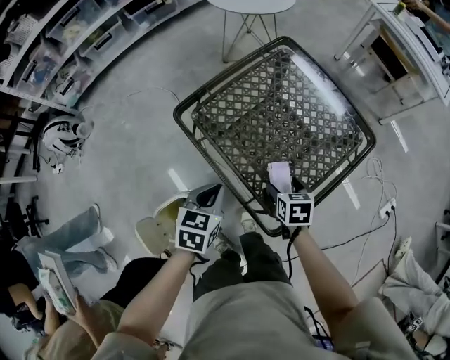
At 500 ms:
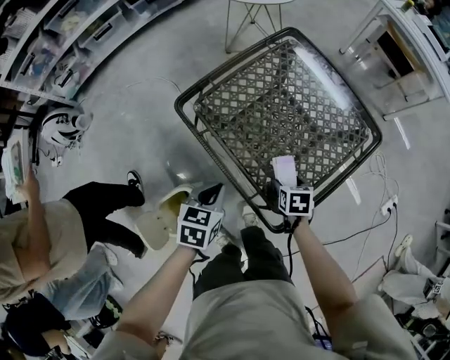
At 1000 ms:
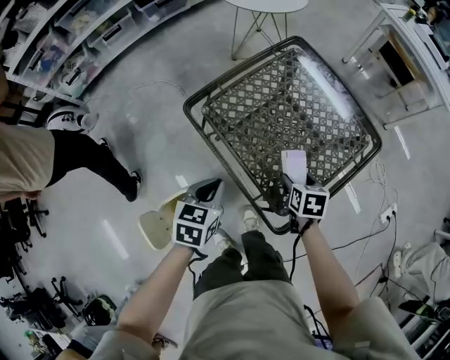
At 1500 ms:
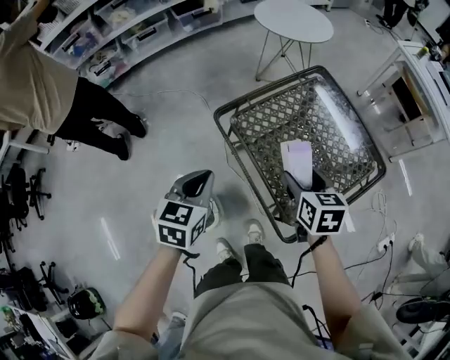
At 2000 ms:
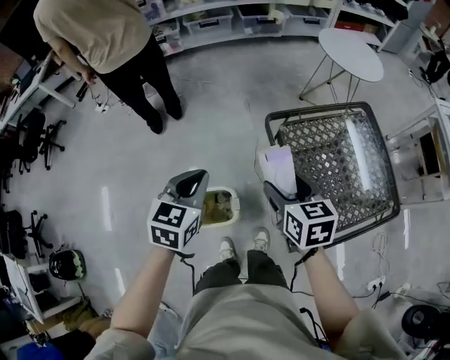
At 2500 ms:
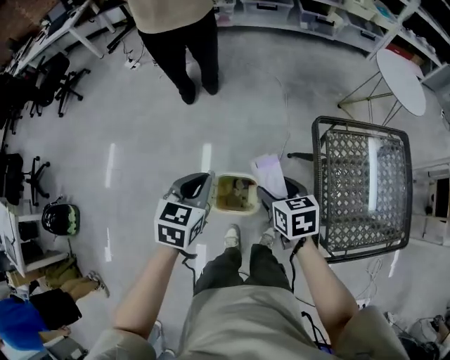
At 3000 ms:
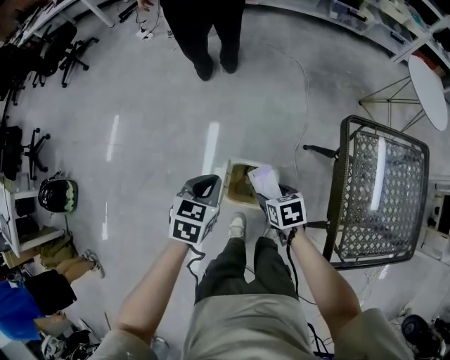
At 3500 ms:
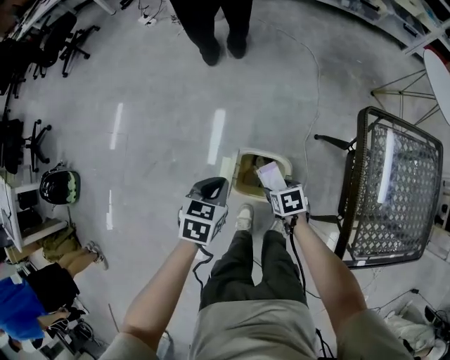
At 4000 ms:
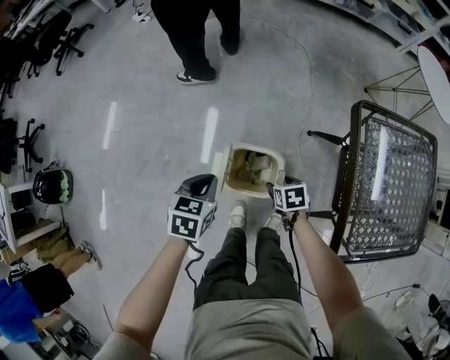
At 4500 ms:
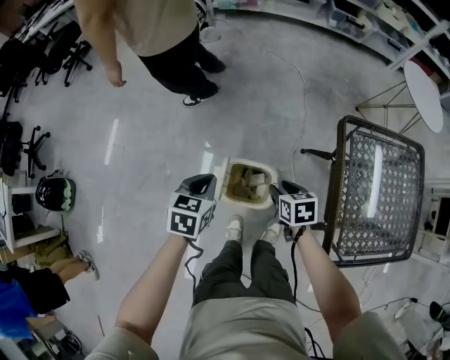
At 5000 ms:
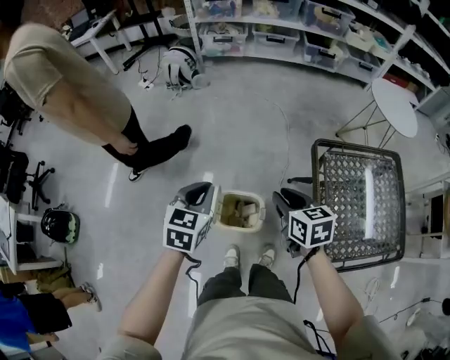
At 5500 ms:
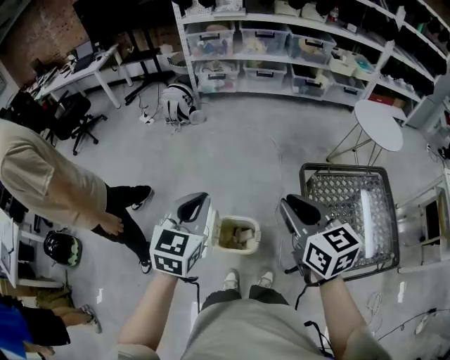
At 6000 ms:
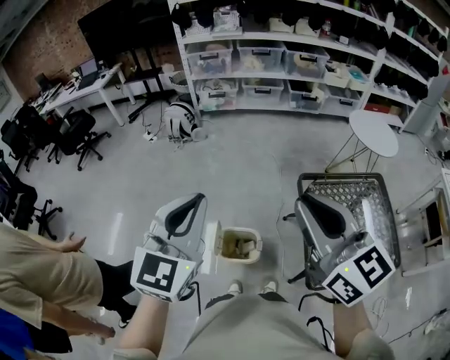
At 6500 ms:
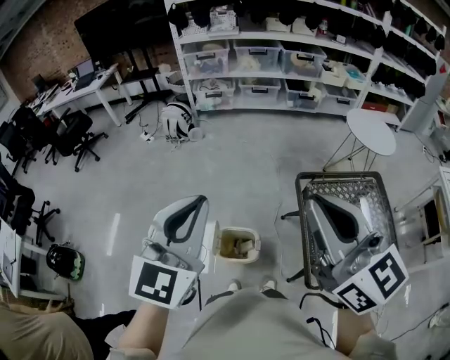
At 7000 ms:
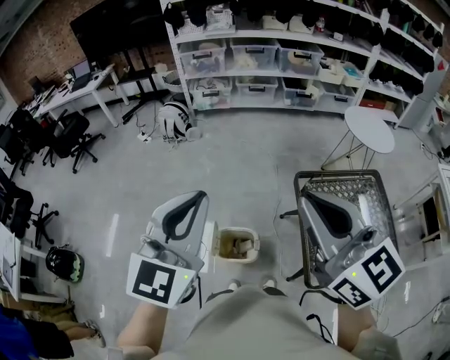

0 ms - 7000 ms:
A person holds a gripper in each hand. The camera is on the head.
0 ms - 2000 ms: The left gripper changes place by roughly 30 cm, and changes its angle by some 30 degrees, while the right gripper changes place by about 35 cm, and changes its angle by some 40 degrees.
2000 ms - 3500 ms: The left gripper is displaced downward by roughly 25 cm, and swivels roughly 30 degrees. The right gripper goes roughly 35 cm downward, and points its fingers approximately 30 degrees further downward.
3500 ms - 5000 ms: The left gripper heads upward, covering approximately 20 cm, and turns by some 20 degrees. Meanwhile the right gripper moves upward, roughly 35 cm, tips its fingers upward by roughly 30 degrees, and closes its fingers.
5000 ms - 7000 ms: The two grippers go about 35 cm upward. The right gripper points its fingers about 40 degrees further upward. The left gripper angles its fingers upward, by roughly 30 degrees.

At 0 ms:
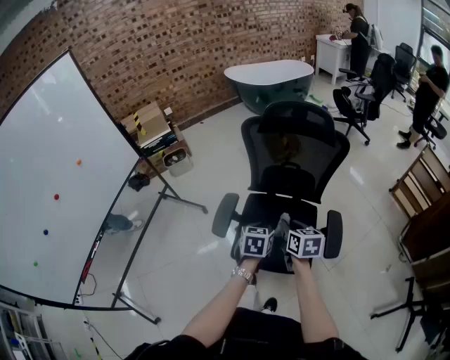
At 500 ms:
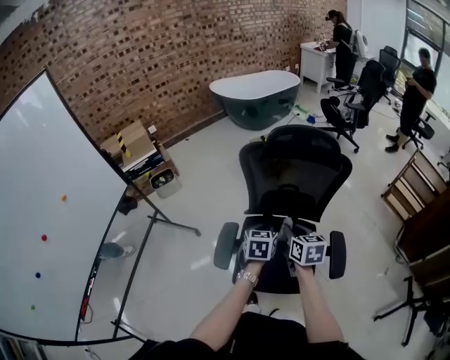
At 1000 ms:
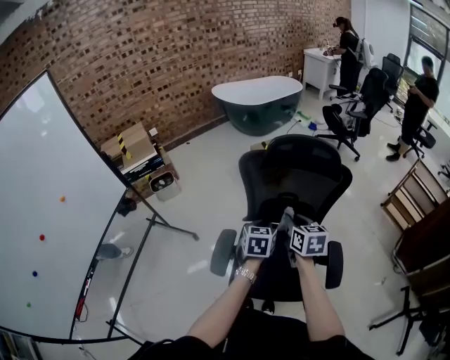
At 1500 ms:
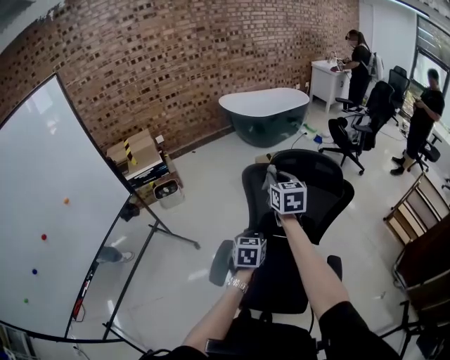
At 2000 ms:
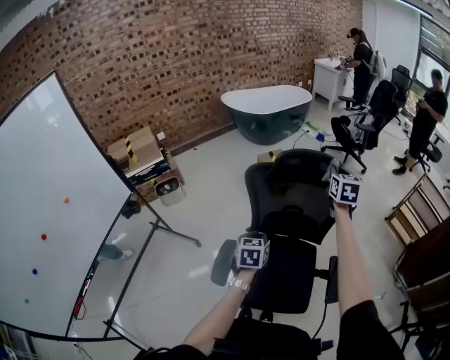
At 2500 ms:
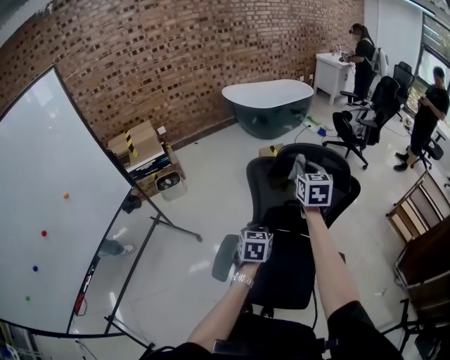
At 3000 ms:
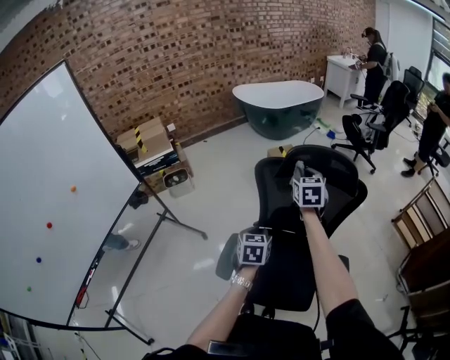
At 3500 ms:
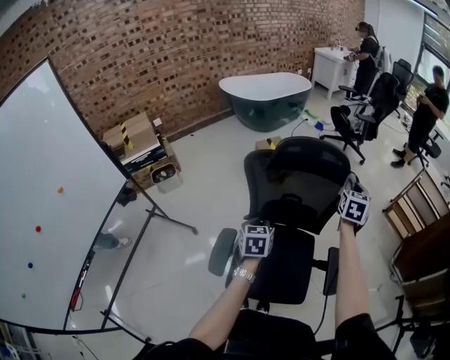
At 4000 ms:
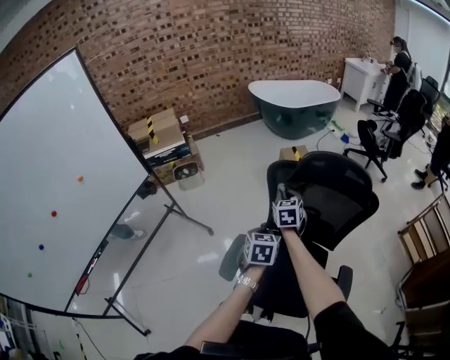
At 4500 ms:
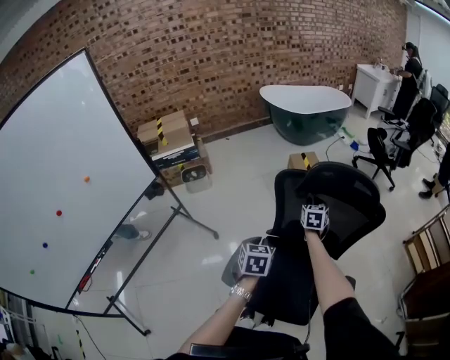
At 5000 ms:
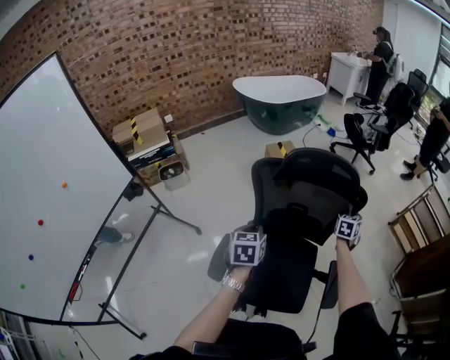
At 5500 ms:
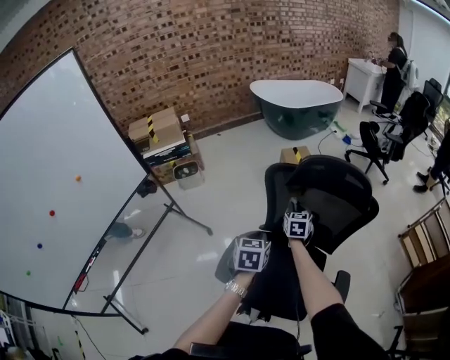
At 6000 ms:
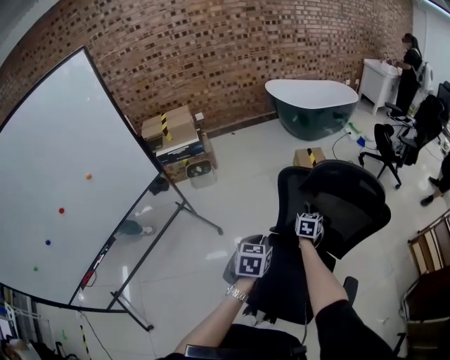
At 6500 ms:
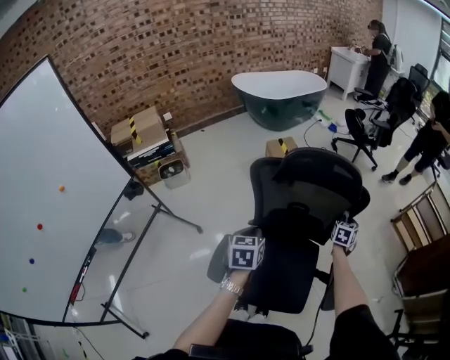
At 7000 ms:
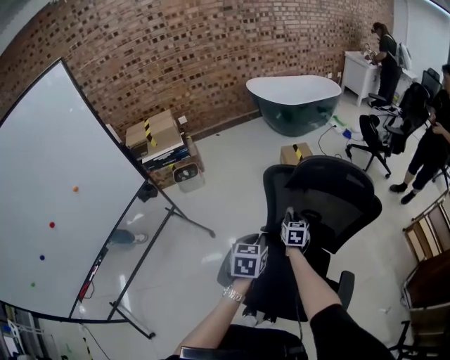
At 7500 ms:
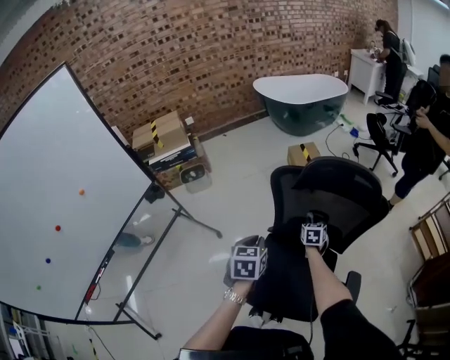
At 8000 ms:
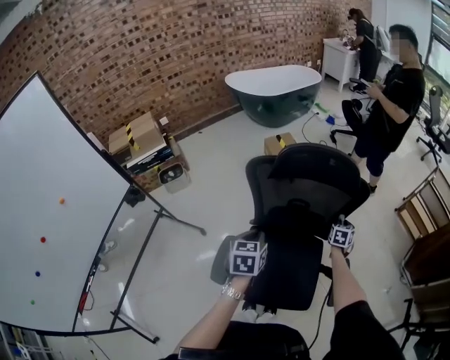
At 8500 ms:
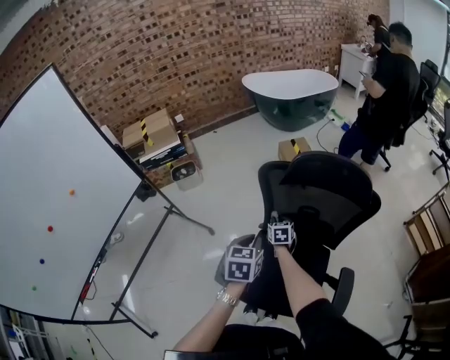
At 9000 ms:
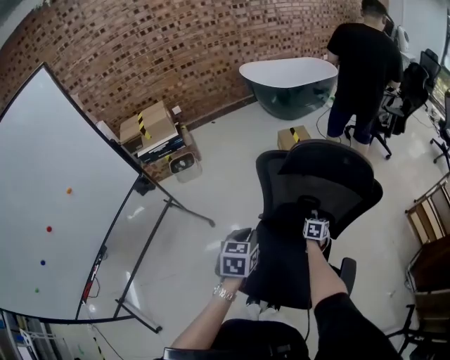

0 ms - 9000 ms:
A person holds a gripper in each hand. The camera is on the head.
0 ms - 2000 ms: The right gripper goes about 40 cm forward and upward, and changes its angle by some 40 degrees; the left gripper heads forward and to the left, covering approximately 15 cm.
2000 ms - 4500 ms: The right gripper goes left and right, about 35 cm each way, reversing 3 times; the left gripper travels to the left by approximately 5 cm.
4500 ms - 7000 ms: The right gripper swings left and right, roughly 35 cm each way, with 3 reversals, while the left gripper moves left and right over some 5 cm, changing direction 2 times.
7000 ms - 9000 ms: The right gripper goes left and right, about 35 cm each way, reversing 2 times, and rotates some 20 degrees.

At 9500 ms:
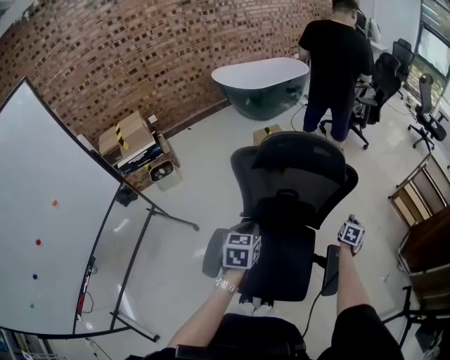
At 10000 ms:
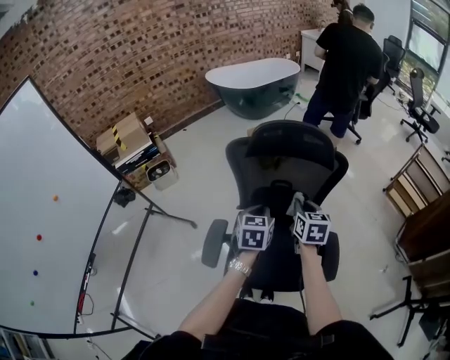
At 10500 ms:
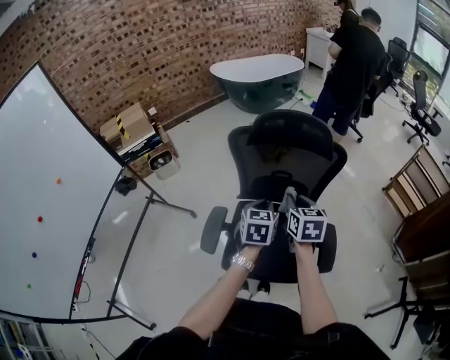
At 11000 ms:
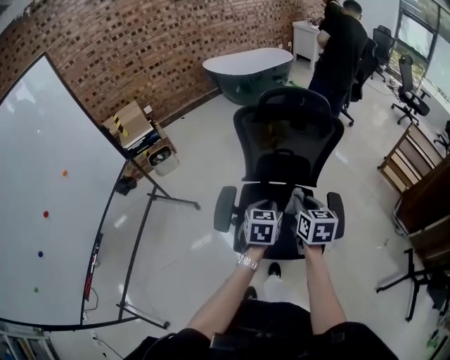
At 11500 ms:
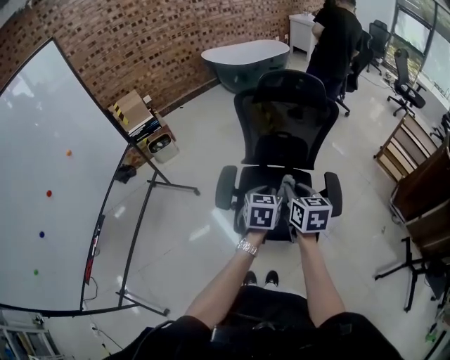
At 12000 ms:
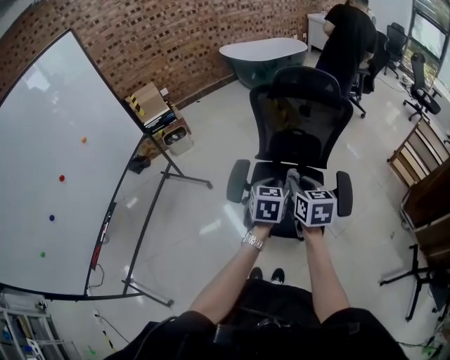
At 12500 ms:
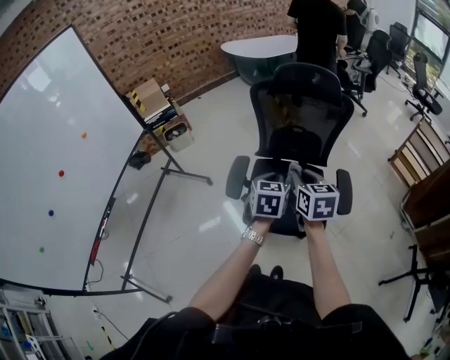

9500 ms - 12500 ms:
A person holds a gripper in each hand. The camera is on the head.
9500 ms - 11000 ms: The left gripper shifts roughly 15 cm backward. The right gripper travels to the left, backward and upward by some 40 cm, and turns by approximately 30 degrees.
11000 ms - 12500 ms: The right gripper moves to the left, some 5 cm, while the left gripper ends up about 5 cm from where it was.

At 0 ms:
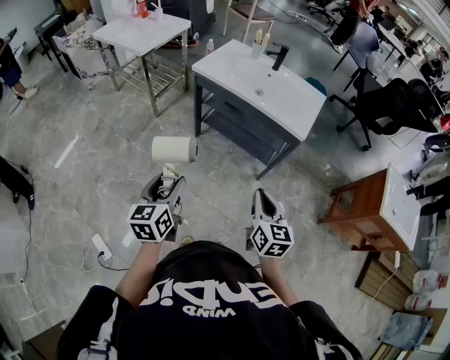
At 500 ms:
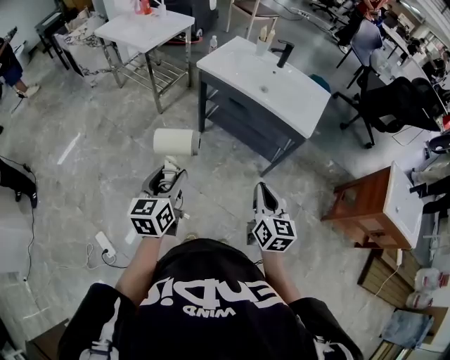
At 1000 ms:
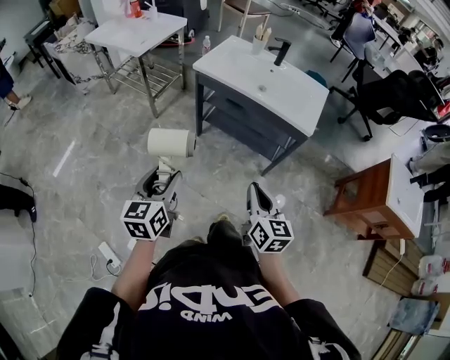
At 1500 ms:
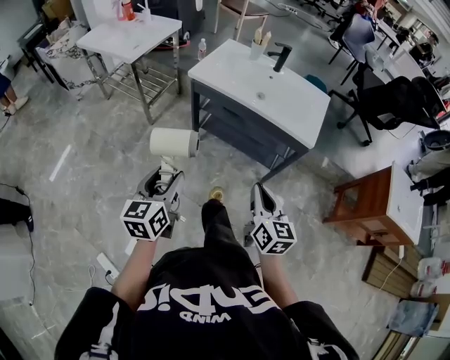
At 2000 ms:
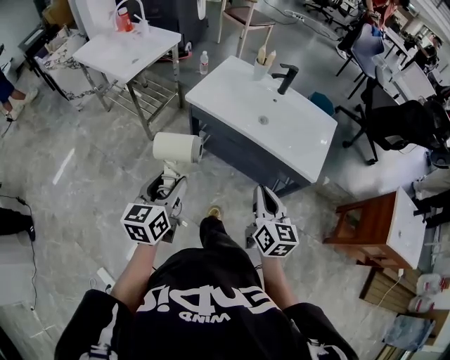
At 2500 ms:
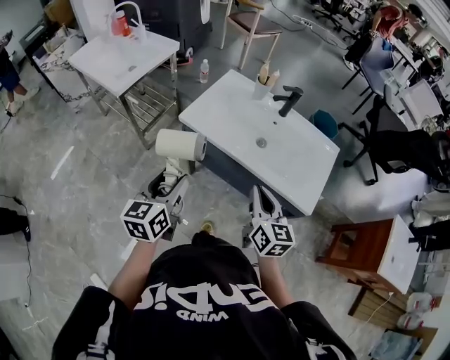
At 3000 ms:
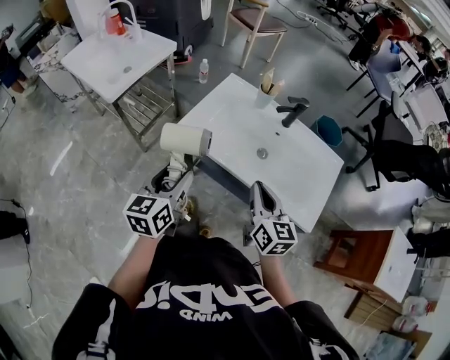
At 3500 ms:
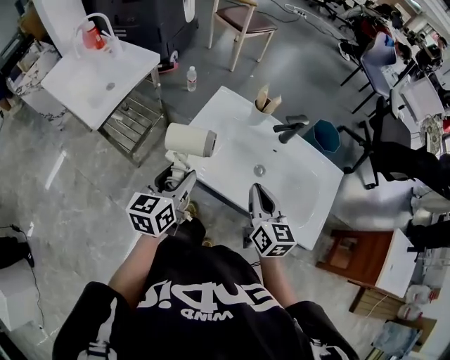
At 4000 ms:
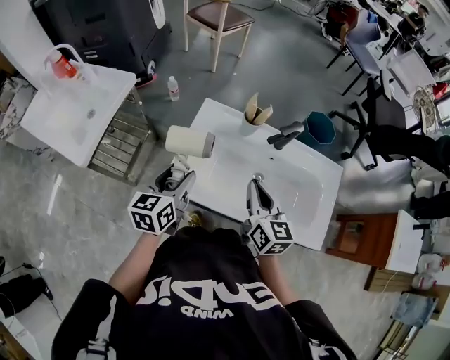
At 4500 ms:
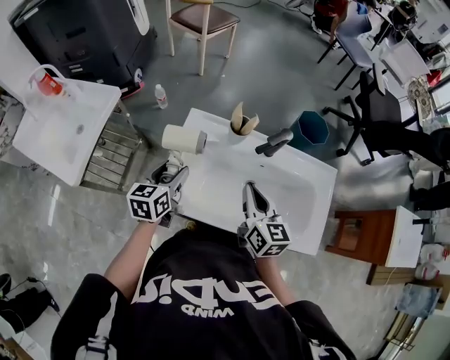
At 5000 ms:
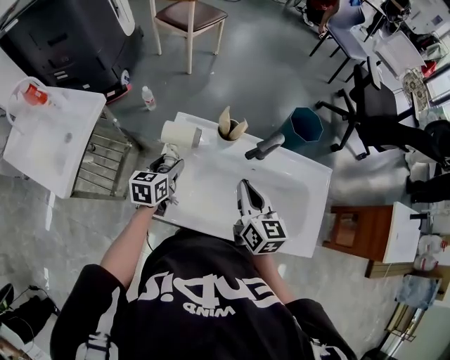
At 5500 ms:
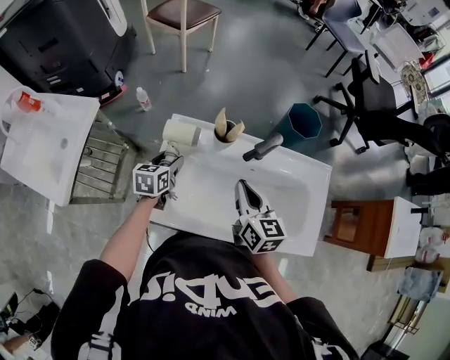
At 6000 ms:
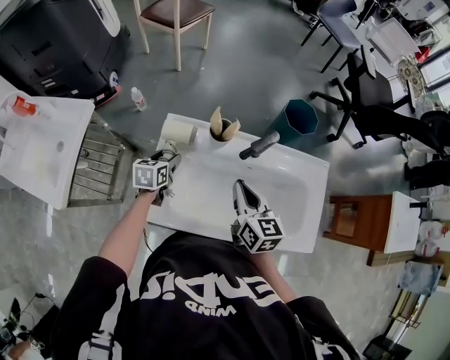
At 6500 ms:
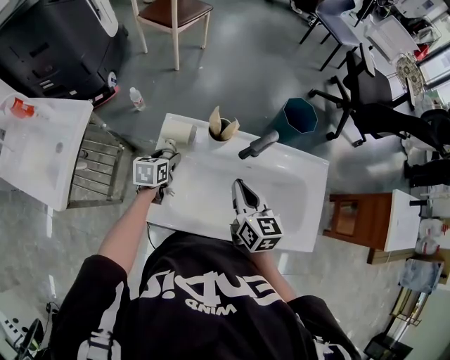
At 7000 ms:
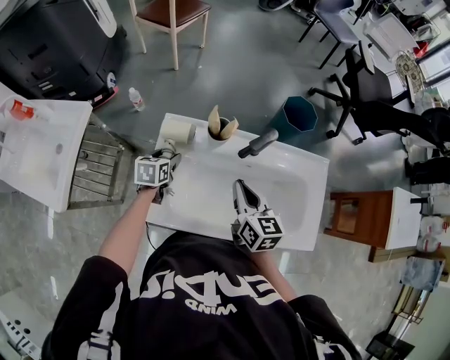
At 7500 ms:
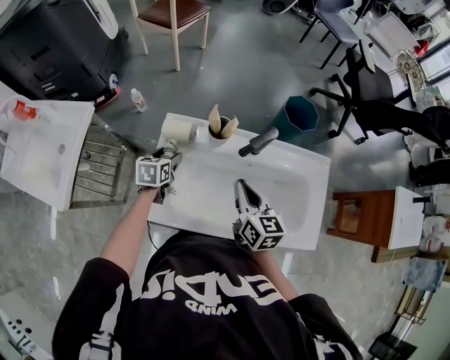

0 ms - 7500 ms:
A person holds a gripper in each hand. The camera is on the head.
0 ms - 2000 ms: The grippers both shift forward by about 25 cm.
2000 ms - 4000 ms: Both grippers move forward, roughly 40 cm.
4000 ms - 5500 ms: The left gripper goes about 20 cm forward and downward, while the right gripper goes about 10 cm forward.
5500 ms - 7500 ms: The grippers make only small movements.
